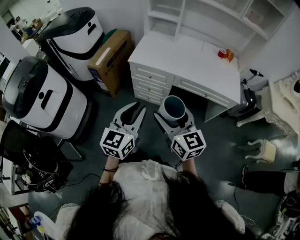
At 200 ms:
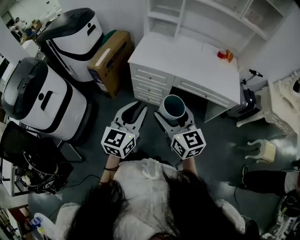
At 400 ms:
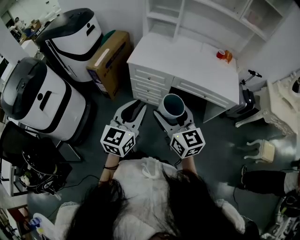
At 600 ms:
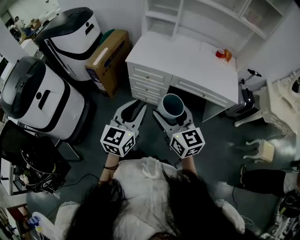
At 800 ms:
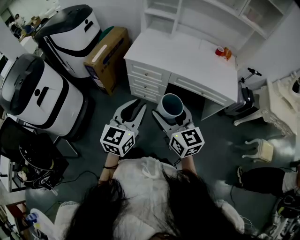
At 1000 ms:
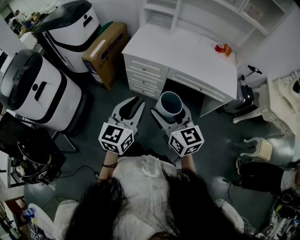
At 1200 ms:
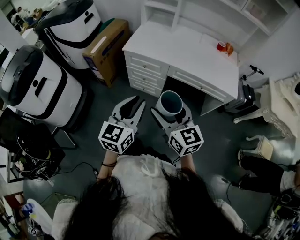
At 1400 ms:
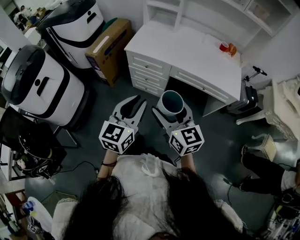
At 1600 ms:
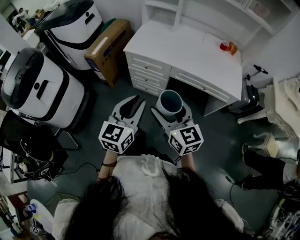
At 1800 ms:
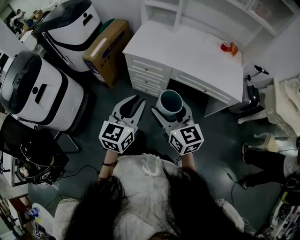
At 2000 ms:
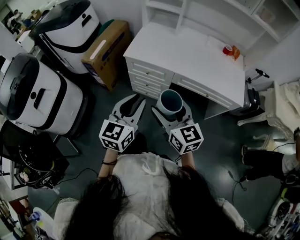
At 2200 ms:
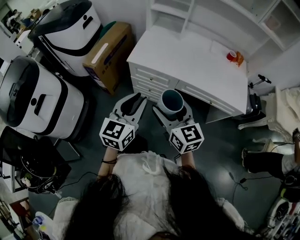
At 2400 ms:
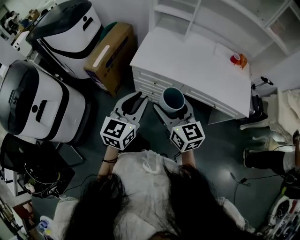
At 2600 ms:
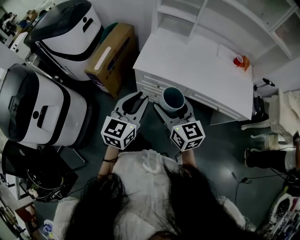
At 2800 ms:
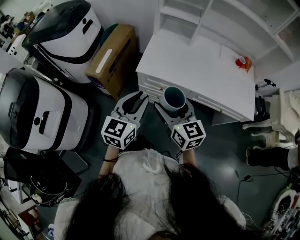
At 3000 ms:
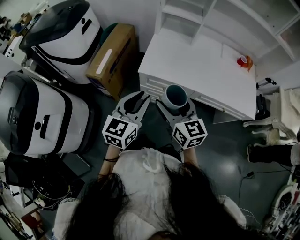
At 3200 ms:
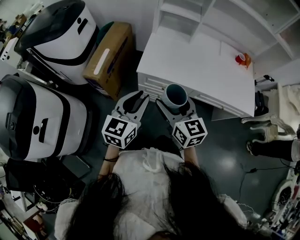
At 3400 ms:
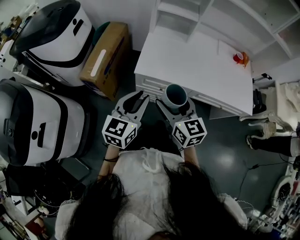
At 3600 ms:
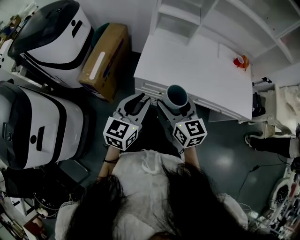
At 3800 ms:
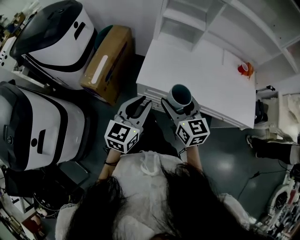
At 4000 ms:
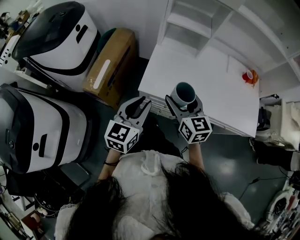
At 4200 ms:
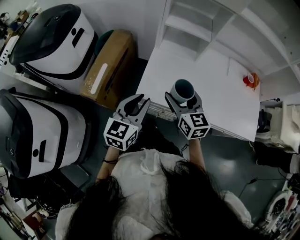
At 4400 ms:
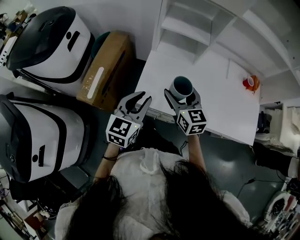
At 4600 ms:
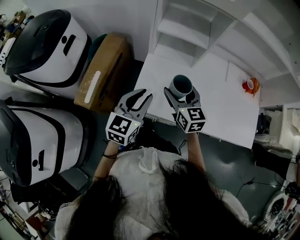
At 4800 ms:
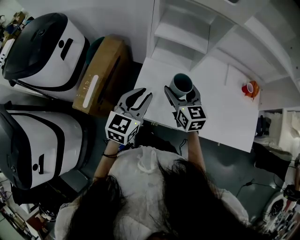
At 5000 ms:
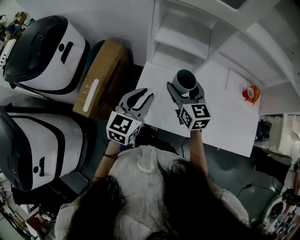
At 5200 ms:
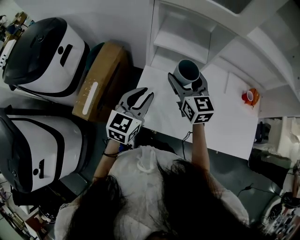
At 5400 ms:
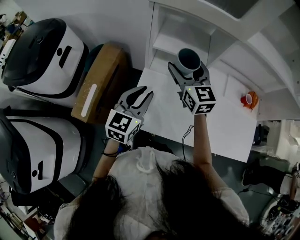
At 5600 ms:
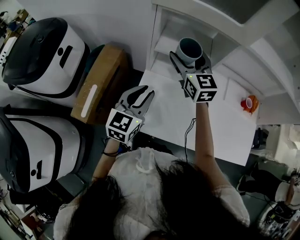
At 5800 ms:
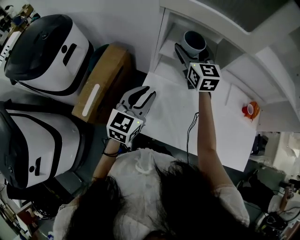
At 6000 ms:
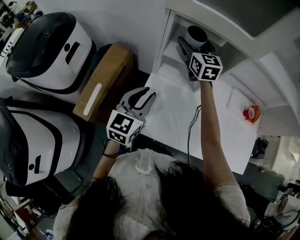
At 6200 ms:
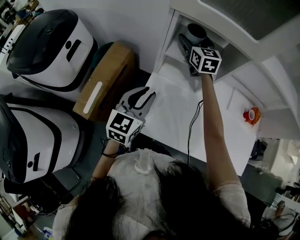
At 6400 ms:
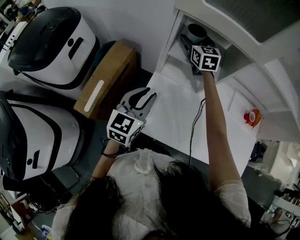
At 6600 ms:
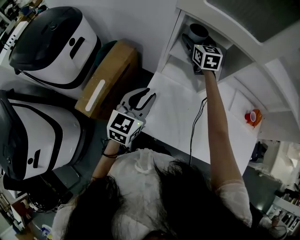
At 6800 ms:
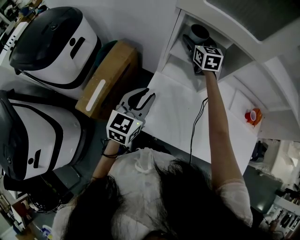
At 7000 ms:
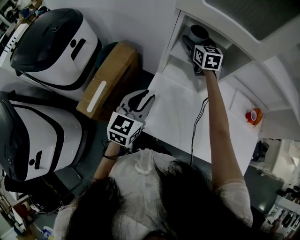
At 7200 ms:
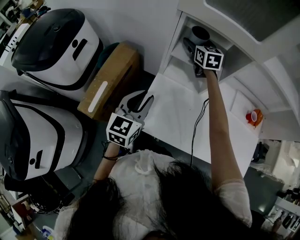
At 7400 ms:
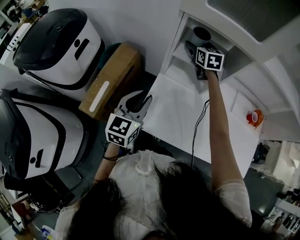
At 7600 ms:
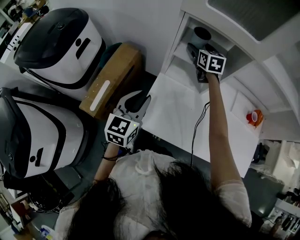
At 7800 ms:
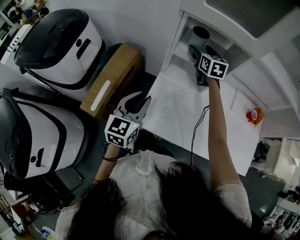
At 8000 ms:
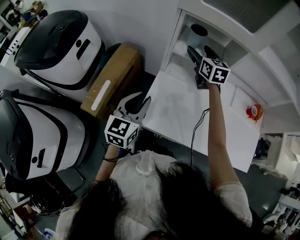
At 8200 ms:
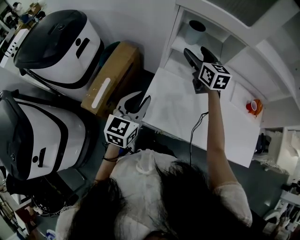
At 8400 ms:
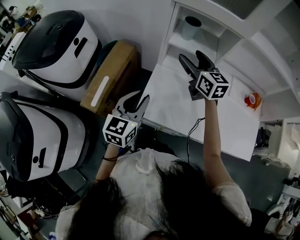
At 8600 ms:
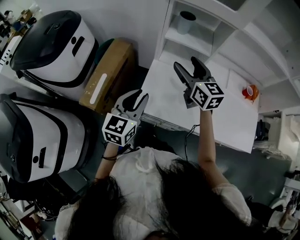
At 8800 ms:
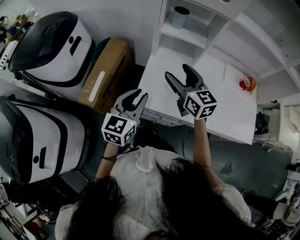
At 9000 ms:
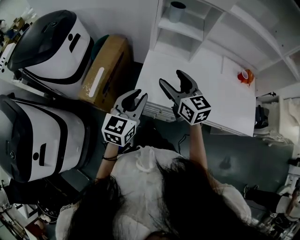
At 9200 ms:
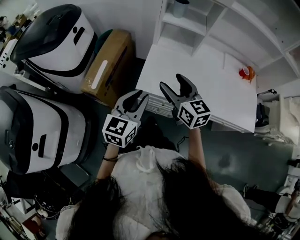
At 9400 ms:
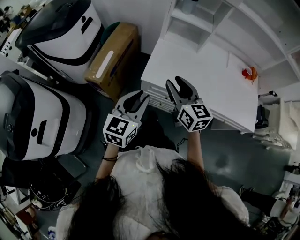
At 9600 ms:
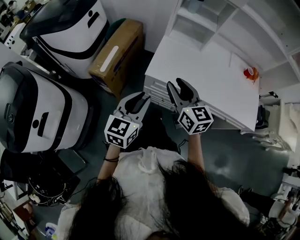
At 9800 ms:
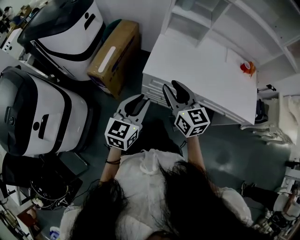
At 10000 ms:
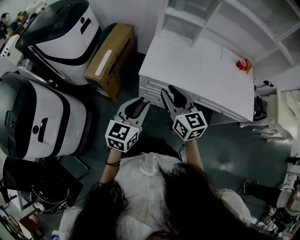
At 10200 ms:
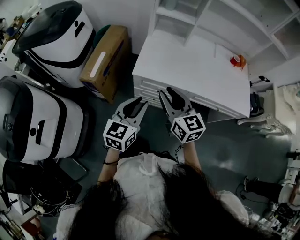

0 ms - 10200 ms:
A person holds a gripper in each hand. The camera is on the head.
0 ms - 1400 ms: Both grippers travel together to the right, approximately 5 cm.
1400 ms - 3000 ms: Both grippers move forward and to the left, some 30 cm.
3000 ms - 4400 ms: The two grippers go about 25 cm forward.
4400 ms - 5800 ms: The left gripper goes approximately 15 cm forward. The right gripper travels forward by about 30 cm.
5800 ms - 7200 ms: The right gripper is displaced forward and downward by approximately 10 cm.
7200 ms - 8800 ms: The left gripper travels backward by some 15 cm. The right gripper heads backward, covering some 35 cm.
8800 ms - 10200 ms: The two grippers go approximately 25 cm backward. The right gripper closes up.

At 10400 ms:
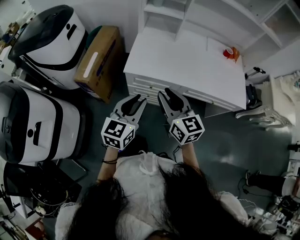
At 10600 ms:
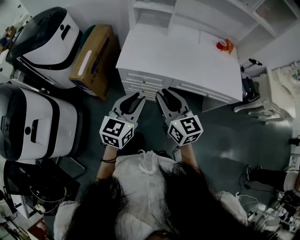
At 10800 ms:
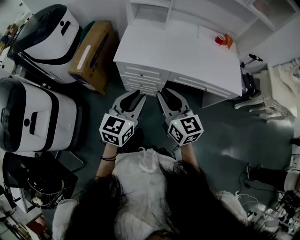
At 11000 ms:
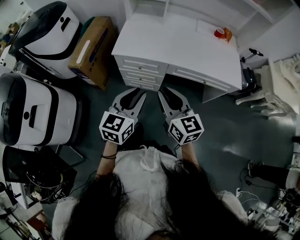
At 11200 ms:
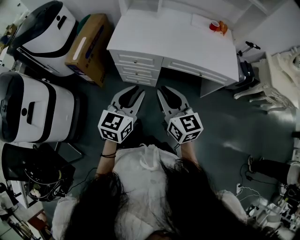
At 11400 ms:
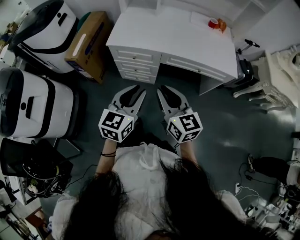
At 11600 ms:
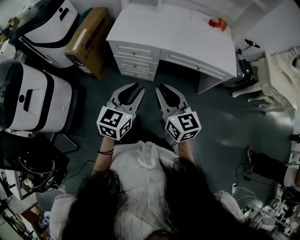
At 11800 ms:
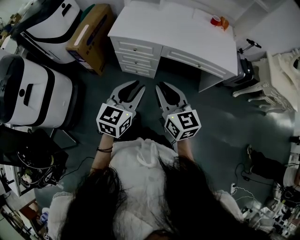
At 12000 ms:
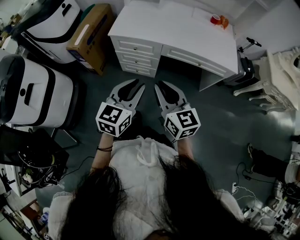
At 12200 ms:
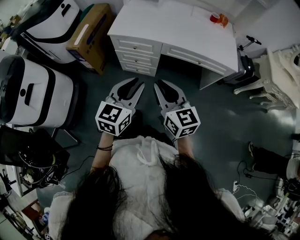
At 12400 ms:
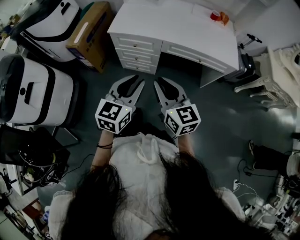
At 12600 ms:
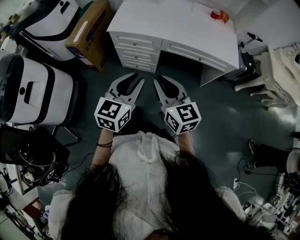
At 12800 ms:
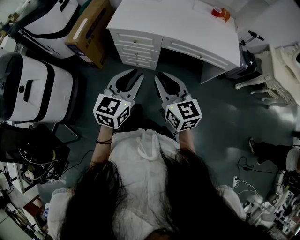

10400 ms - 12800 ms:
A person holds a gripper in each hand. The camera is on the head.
10400 ms - 11600 ms: Both grippers travel together backward and to the right, some 25 cm.
11600 ms - 12800 ms: The grippers stay close to where they were, moving slightly.

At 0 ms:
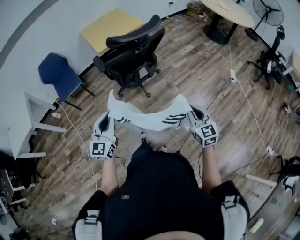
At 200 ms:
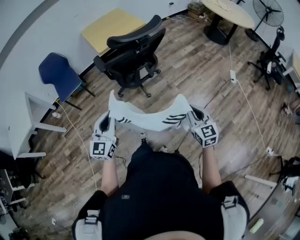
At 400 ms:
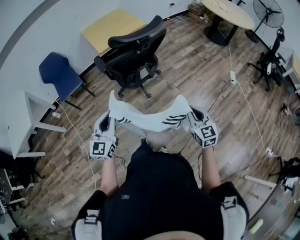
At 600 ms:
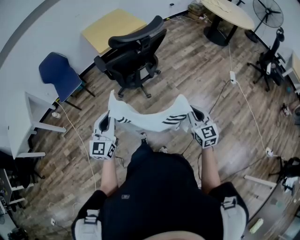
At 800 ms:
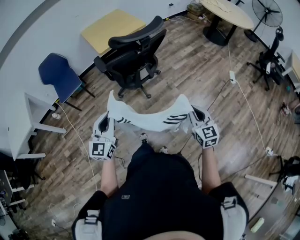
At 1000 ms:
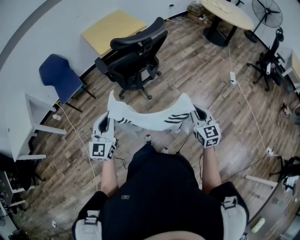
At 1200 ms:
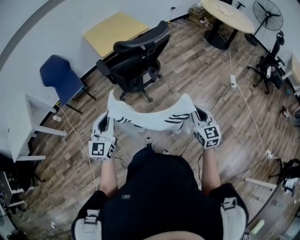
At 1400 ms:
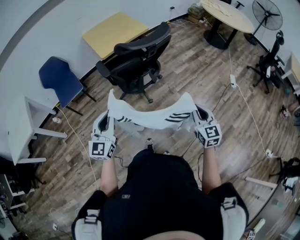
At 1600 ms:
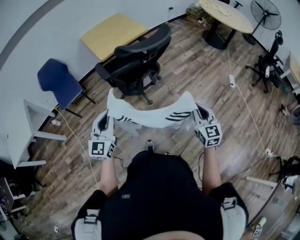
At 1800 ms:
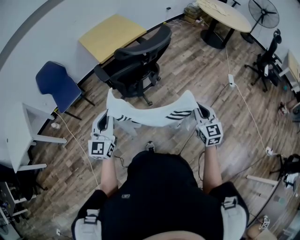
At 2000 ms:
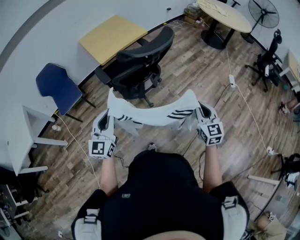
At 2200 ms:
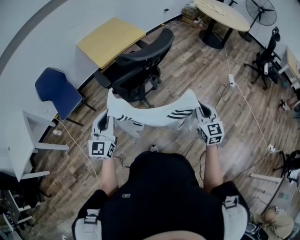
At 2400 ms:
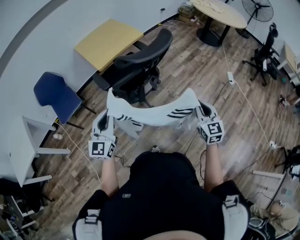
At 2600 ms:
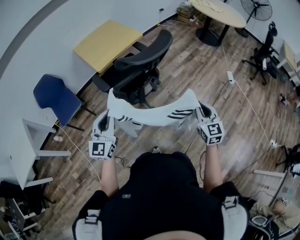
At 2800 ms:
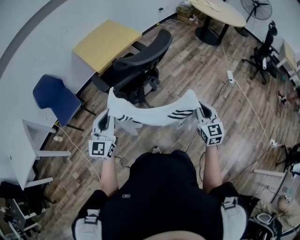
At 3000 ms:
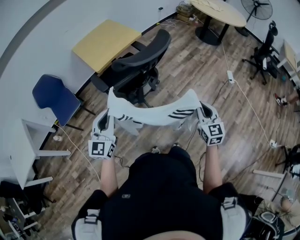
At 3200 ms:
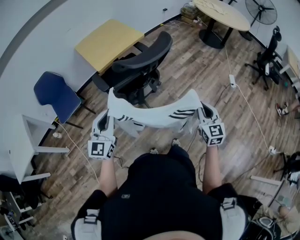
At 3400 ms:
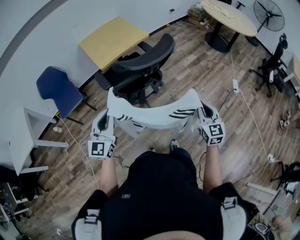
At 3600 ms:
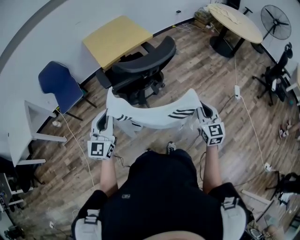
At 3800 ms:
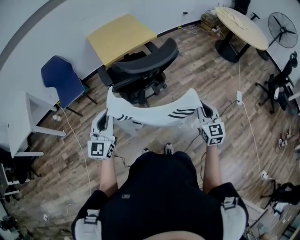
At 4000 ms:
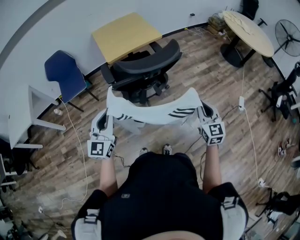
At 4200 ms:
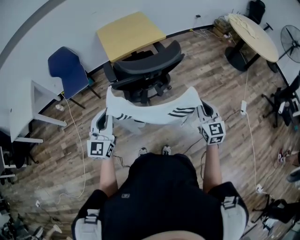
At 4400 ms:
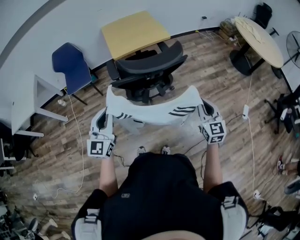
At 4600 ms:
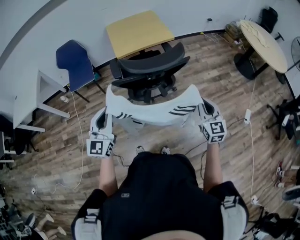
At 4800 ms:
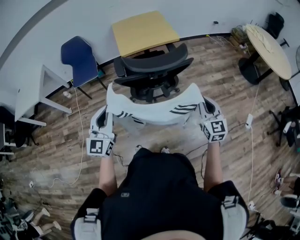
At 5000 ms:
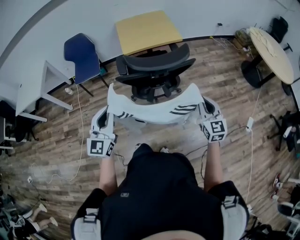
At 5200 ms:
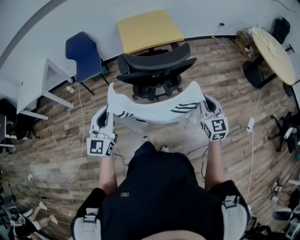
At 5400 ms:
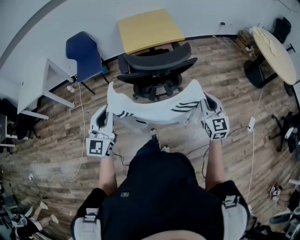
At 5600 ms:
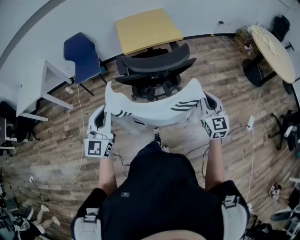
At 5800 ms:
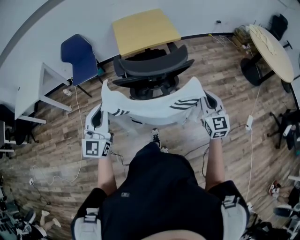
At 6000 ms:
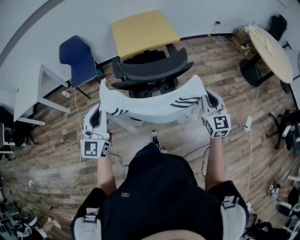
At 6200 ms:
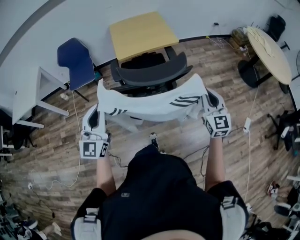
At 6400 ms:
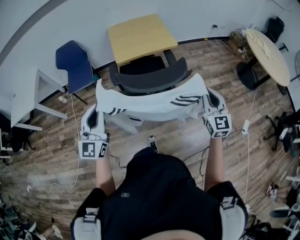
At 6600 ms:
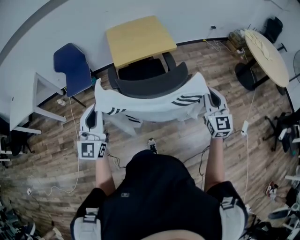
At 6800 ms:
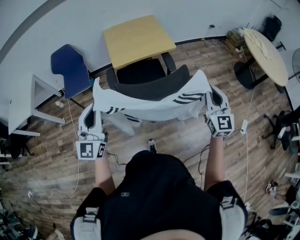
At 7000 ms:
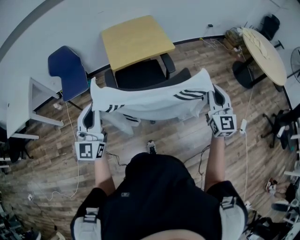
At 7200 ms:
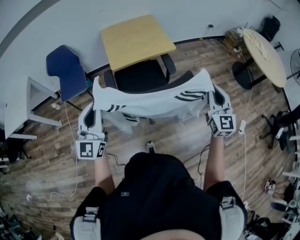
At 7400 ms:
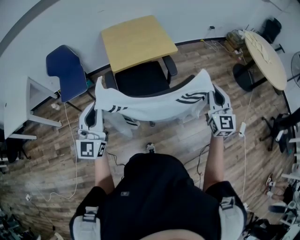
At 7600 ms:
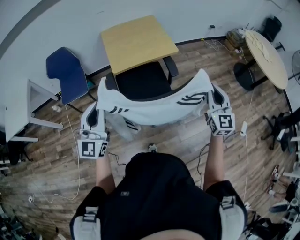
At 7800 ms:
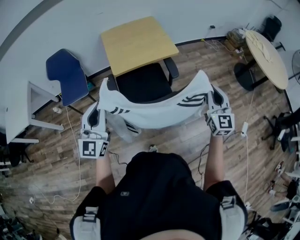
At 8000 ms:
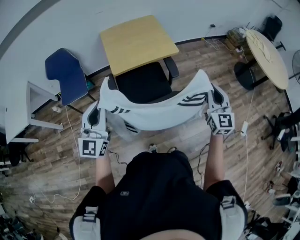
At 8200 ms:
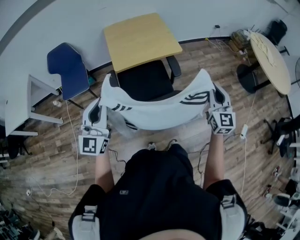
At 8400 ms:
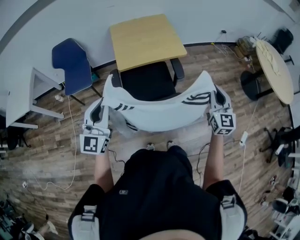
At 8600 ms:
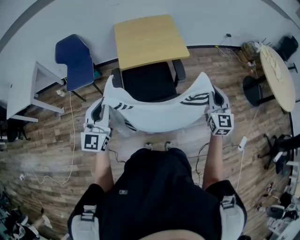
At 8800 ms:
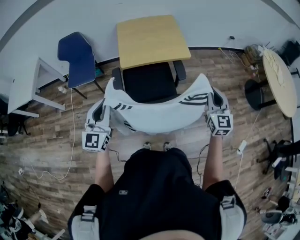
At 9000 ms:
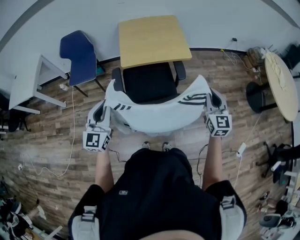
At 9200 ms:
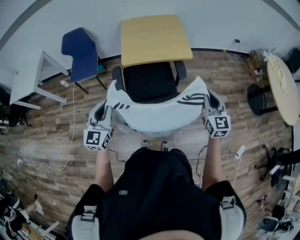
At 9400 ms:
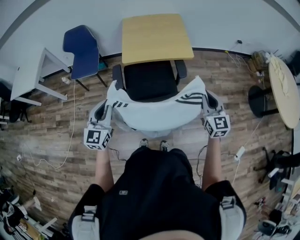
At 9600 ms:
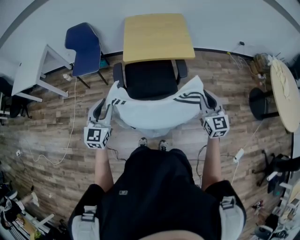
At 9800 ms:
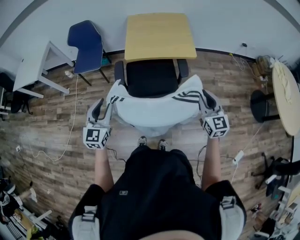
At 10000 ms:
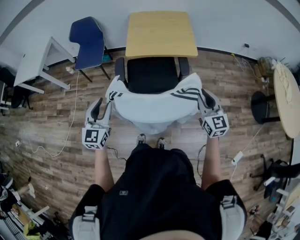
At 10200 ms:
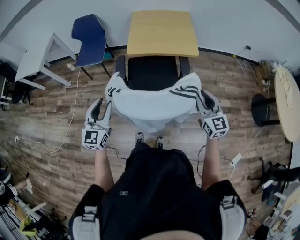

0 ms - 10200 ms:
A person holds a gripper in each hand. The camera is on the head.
0 ms - 1400 ms: The left gripper heads to the left, covering some 5 cm. Meanwhile the right gripper changes place by about 5 cm.
1400 ms - 3000 ms: The grippers both shift forward by roughly 10 cm.
3000 ms - 4400 ms: The left gripper moves to the right, approximately 10 cm, and swivels approximately 20 degrees. Meanwhile the right gripper is displaced forward by about 15 cm, and swivels some 20 degrees.
4400 ms - 5800 ms: The right gripper travels forward by about 10 cm.
5800 ms - 7200 ms: The right gripper shifts about 15 cm forward and upward, while the left gripper heads forward, covering approximately 15 cm.
7200 ms - 8800 ms: The right gripper goes about 15 cm forward. Meanwhile the left gripper goes some 10 cm forward and downward.
8800 ms - 10200 ms: The right gripper swivels approximately 30 degrees, while the left gripper moves backward, about 5 cm, and opens.

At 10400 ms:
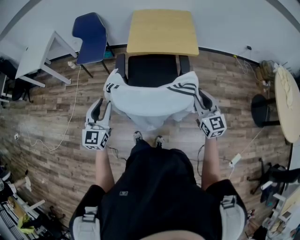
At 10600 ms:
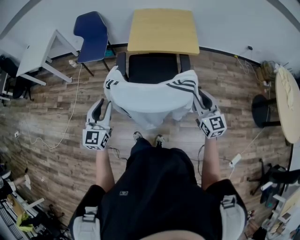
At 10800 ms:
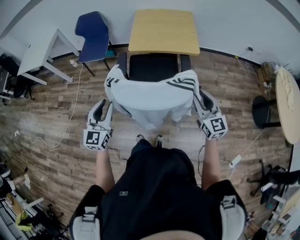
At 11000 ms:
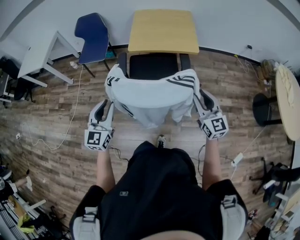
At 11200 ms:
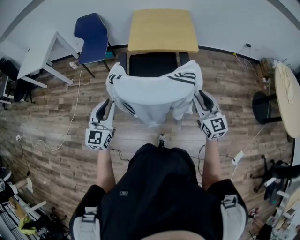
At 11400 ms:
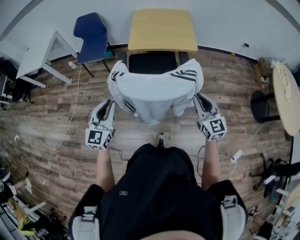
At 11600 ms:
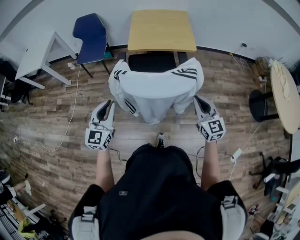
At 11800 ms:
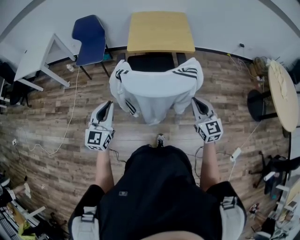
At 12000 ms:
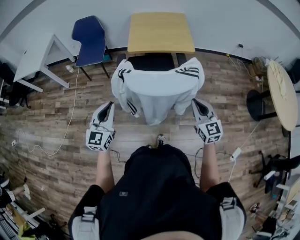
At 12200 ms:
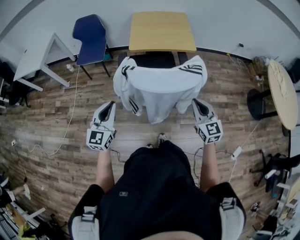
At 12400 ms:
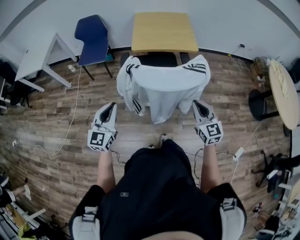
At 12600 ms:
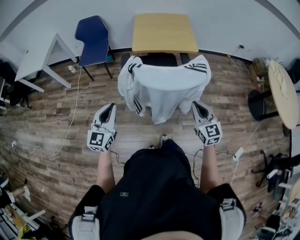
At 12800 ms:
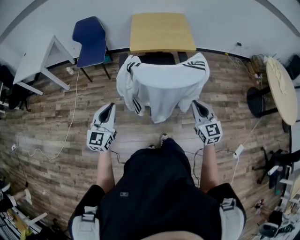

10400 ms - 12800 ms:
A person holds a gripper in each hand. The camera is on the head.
10400 ms - 11600 ms: The two grippers go about 10 cm backward. The right gripper closes up.
11600 ms - 12800 ms: The right gripper shifts about 10 cm to the left and backward, while the left gripper goes some 5 cm to the left.
